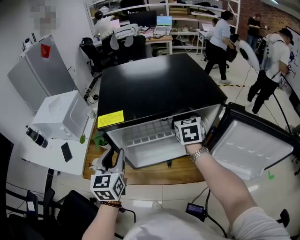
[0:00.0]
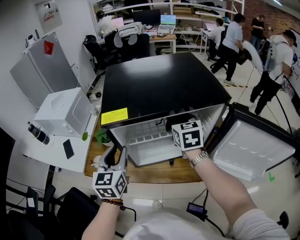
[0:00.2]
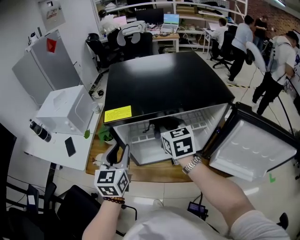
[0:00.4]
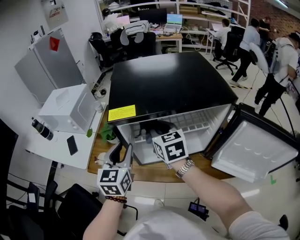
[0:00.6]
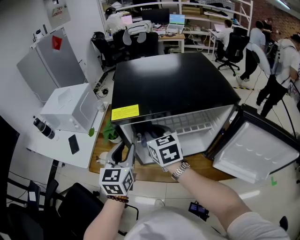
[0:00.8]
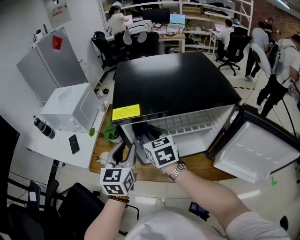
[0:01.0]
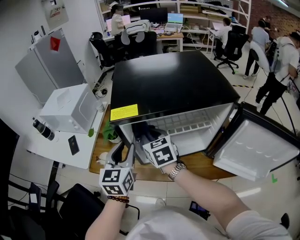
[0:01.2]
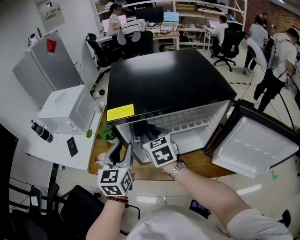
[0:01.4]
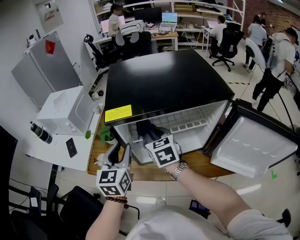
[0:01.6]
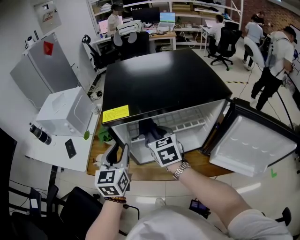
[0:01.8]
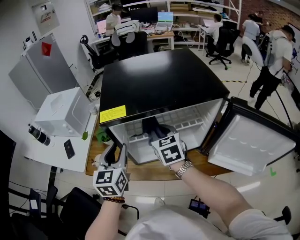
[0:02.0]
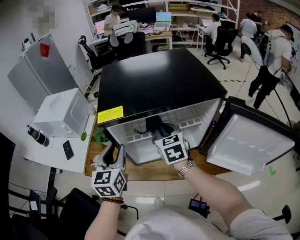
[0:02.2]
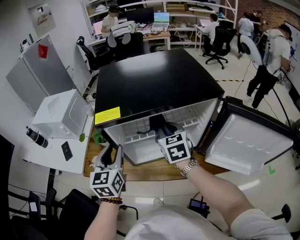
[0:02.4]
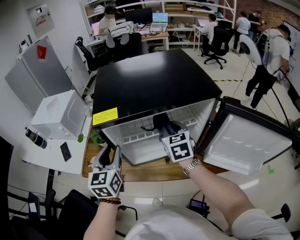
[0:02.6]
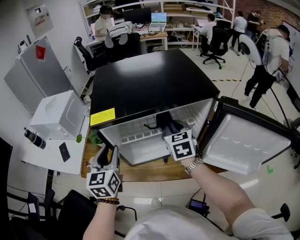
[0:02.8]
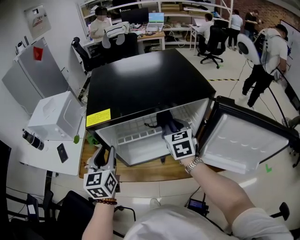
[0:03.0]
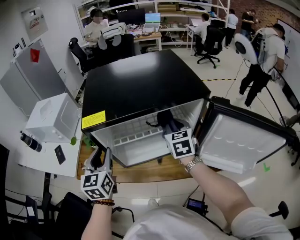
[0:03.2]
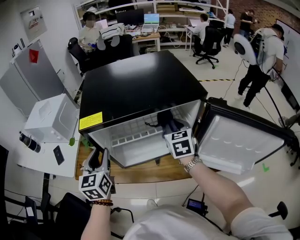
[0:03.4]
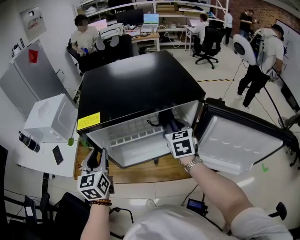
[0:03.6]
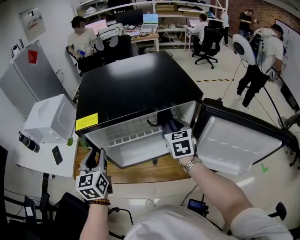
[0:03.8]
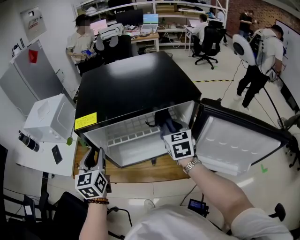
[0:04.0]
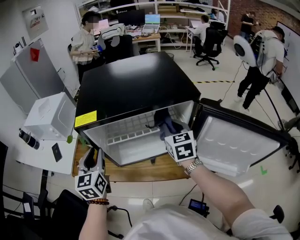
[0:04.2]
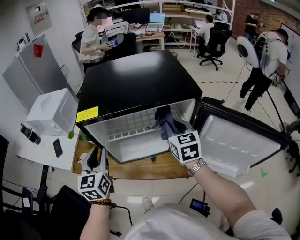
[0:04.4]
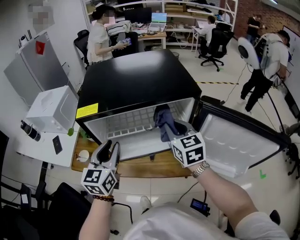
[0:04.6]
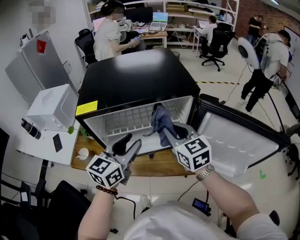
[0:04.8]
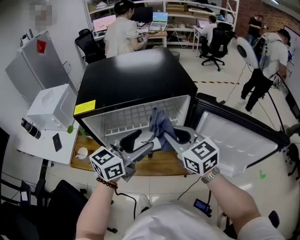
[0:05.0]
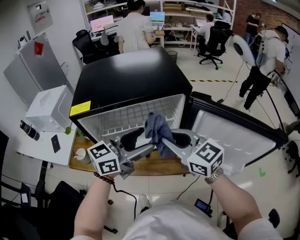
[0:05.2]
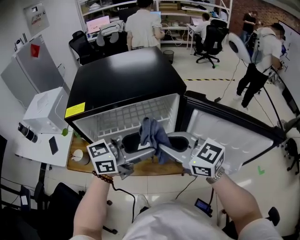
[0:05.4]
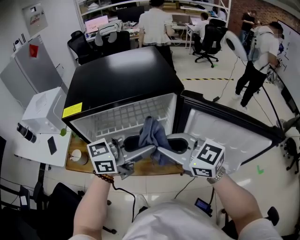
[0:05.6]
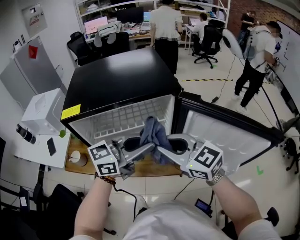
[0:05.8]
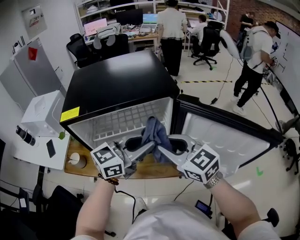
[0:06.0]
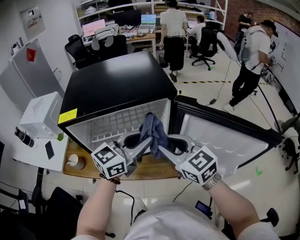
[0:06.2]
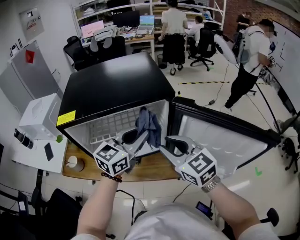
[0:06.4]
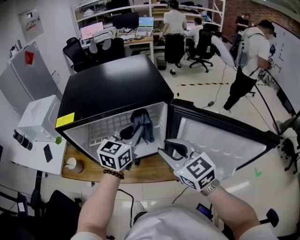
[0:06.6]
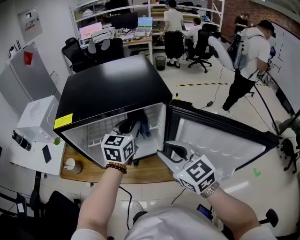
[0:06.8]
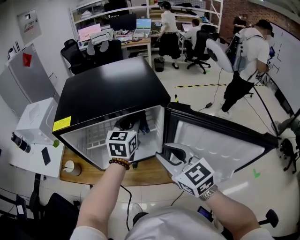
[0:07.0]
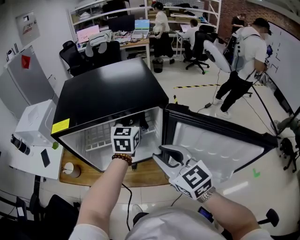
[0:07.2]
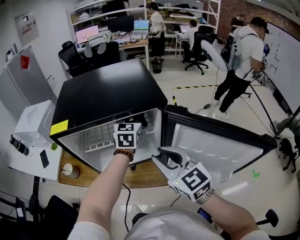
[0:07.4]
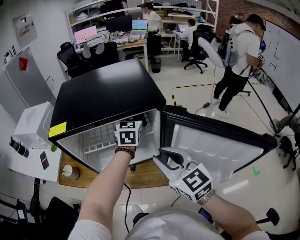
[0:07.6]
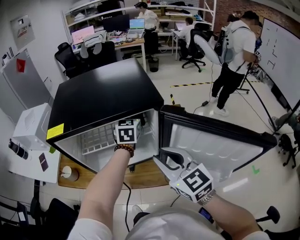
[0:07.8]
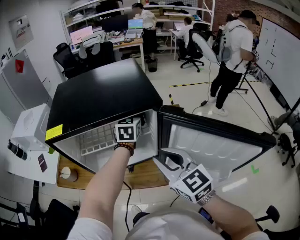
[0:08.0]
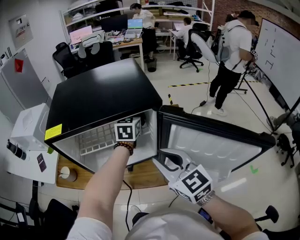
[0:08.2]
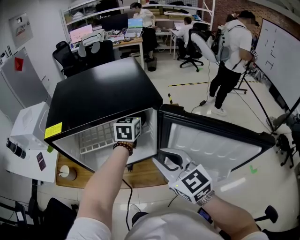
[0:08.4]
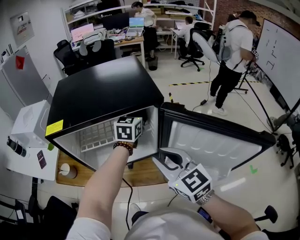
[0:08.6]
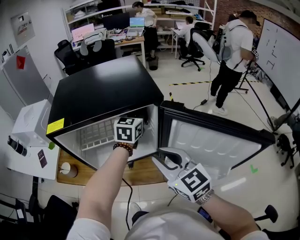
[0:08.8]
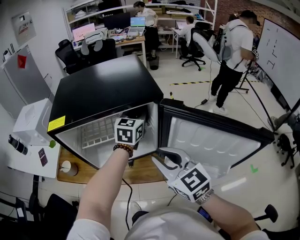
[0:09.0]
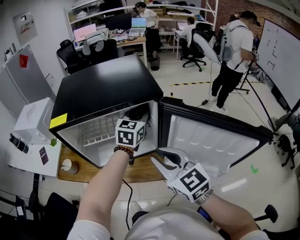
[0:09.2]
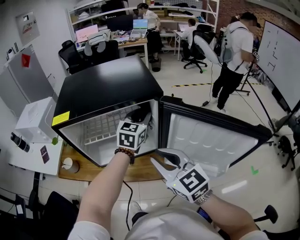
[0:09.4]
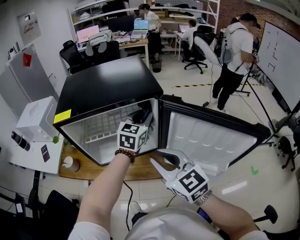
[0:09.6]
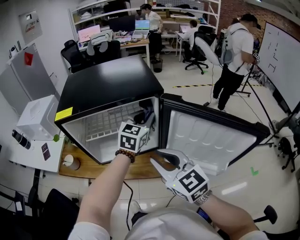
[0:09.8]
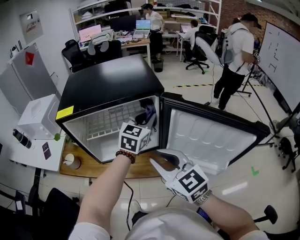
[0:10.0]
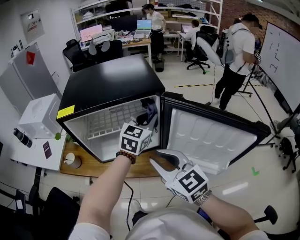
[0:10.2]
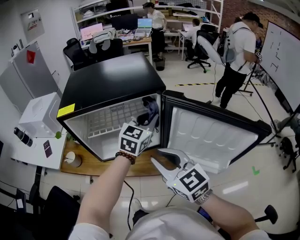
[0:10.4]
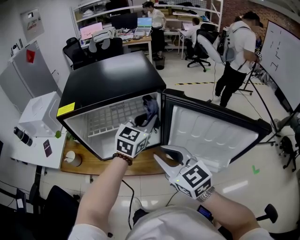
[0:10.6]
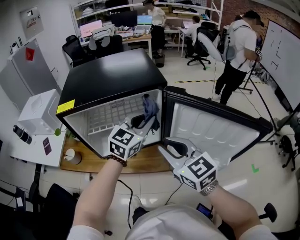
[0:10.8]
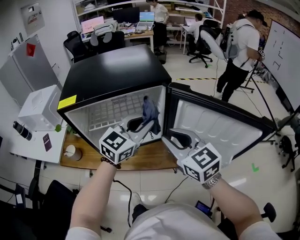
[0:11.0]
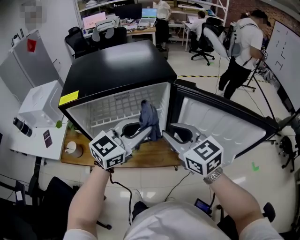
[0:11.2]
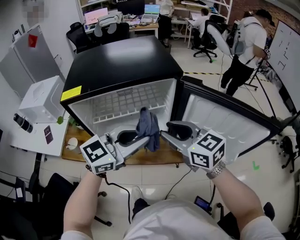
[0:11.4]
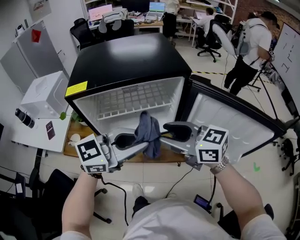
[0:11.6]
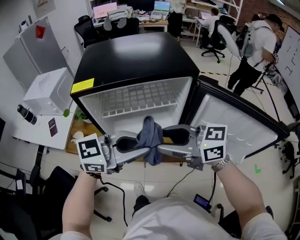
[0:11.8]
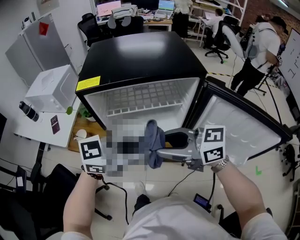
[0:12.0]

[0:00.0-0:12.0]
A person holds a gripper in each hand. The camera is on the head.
0:00.0 to 0:01.6: The right gripper is displaced to the left by some 20 cm, and swivels roughly 20 degrees.
0:01.6 to 0:03.0: The right gripper shifts about 15 cm to the right.
0:03.0 to 0:04.4: The right gripper changes place by about 5 cm.
0:04.4 to 0:06.0: The left gripper moves about 30 cm, rotates about 60 degrees, and opens, then closes once more. The right gripper shifts by roughly 15 cm, and changes its angle by roughly 30 degrees.
0:06.0 to 0:07.6: The left gripper shifts approximately 25 cm forward, and turns by some 50 degrees.
0:07.6 to 0:09.0: The left gripper ends up about 5 cm from where it was.
0:09.0 to 0:10.4: The left gripper moves backward, about 10 cm. The right gripper changes place by approximately 5 cm.
0:10.4 to 0:12.0: The left gripper shifts by some 25 cm, and turns by roughly 40 degrees, while the right gripper ends up roughly 10 cm from where it was, swivels some 50 degrees, and opens its fingers.

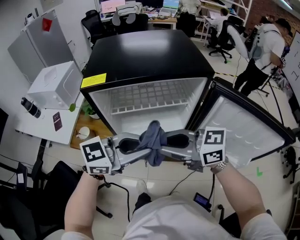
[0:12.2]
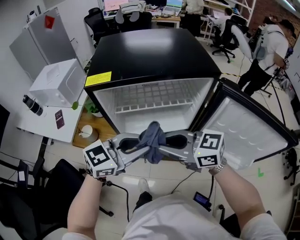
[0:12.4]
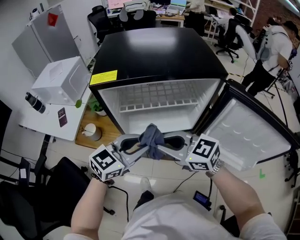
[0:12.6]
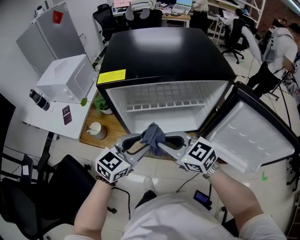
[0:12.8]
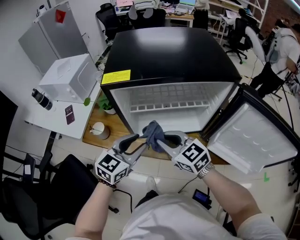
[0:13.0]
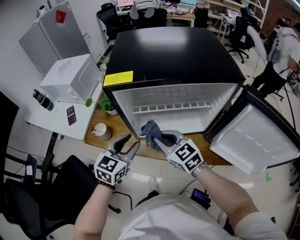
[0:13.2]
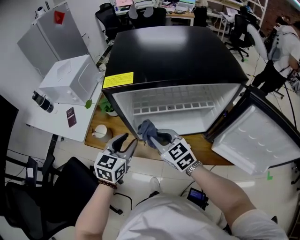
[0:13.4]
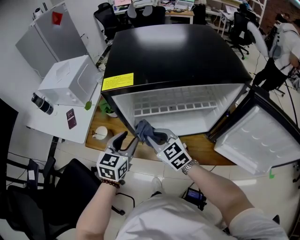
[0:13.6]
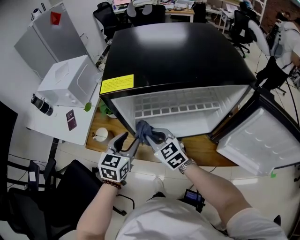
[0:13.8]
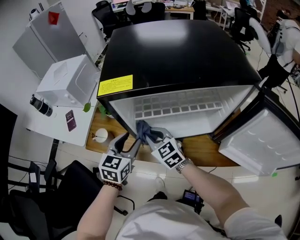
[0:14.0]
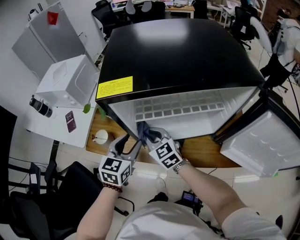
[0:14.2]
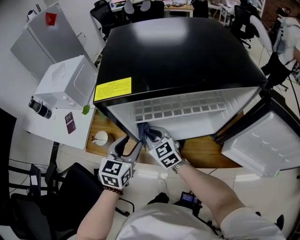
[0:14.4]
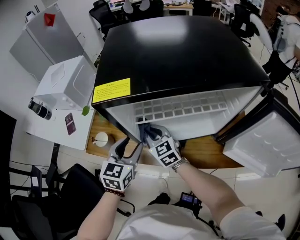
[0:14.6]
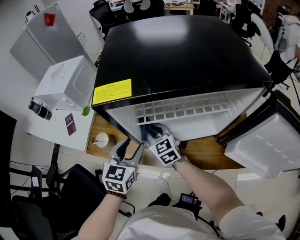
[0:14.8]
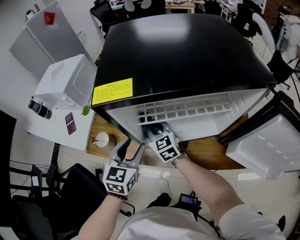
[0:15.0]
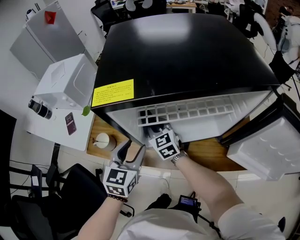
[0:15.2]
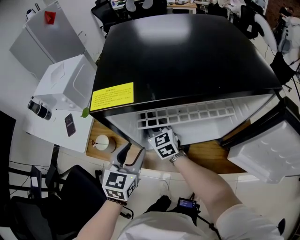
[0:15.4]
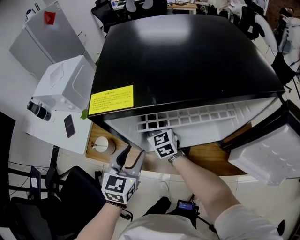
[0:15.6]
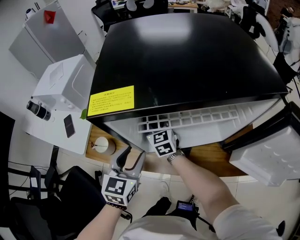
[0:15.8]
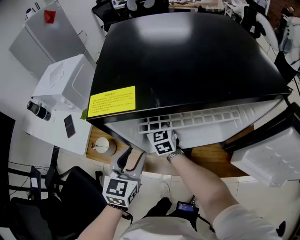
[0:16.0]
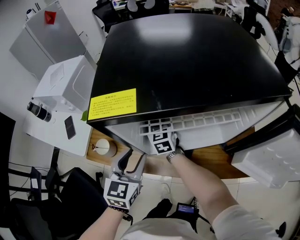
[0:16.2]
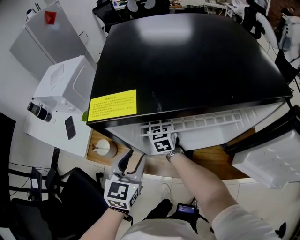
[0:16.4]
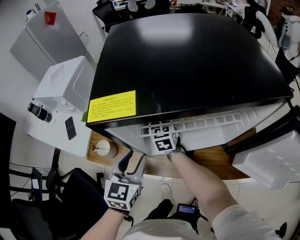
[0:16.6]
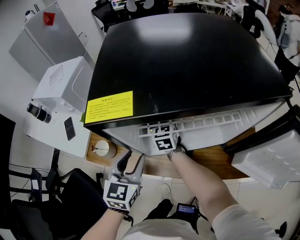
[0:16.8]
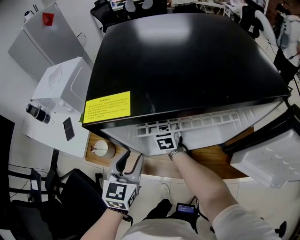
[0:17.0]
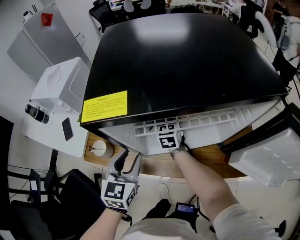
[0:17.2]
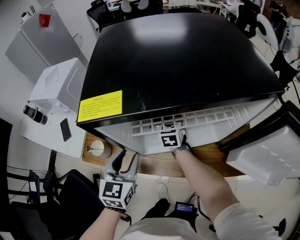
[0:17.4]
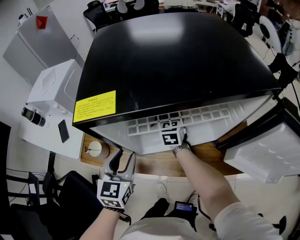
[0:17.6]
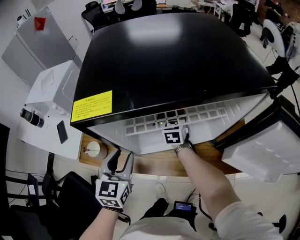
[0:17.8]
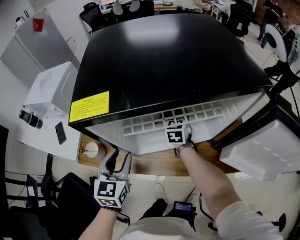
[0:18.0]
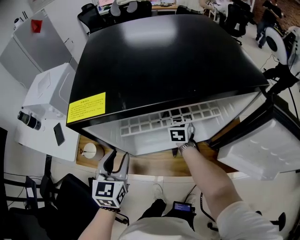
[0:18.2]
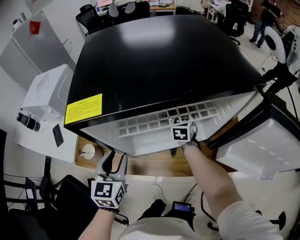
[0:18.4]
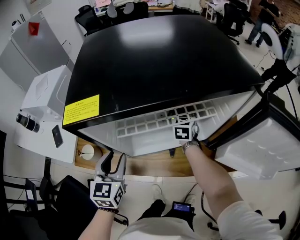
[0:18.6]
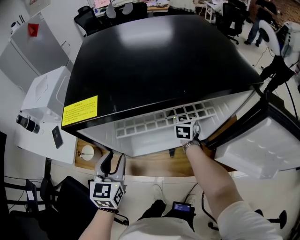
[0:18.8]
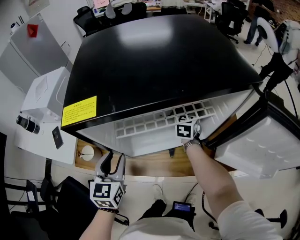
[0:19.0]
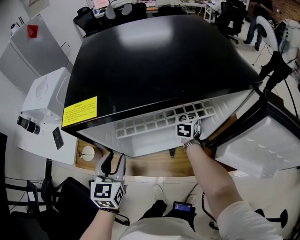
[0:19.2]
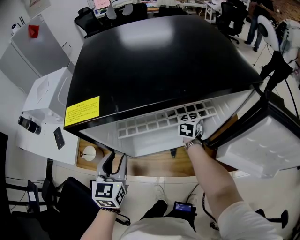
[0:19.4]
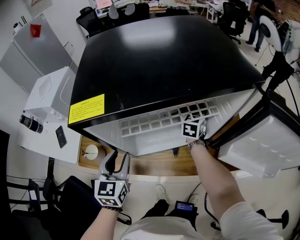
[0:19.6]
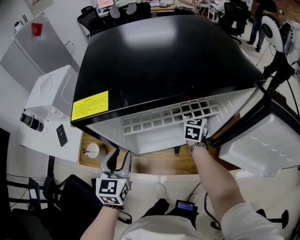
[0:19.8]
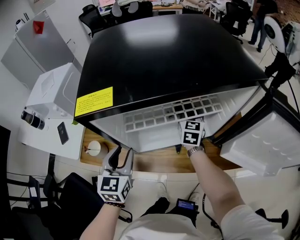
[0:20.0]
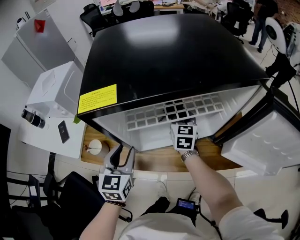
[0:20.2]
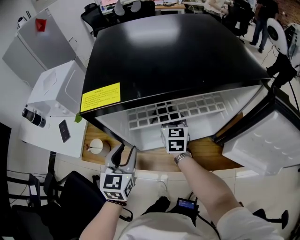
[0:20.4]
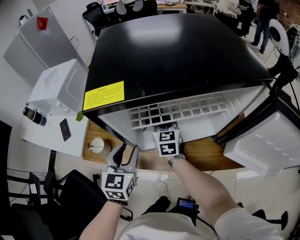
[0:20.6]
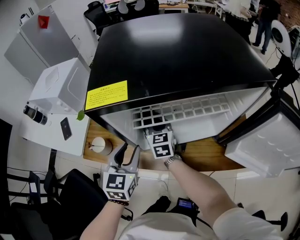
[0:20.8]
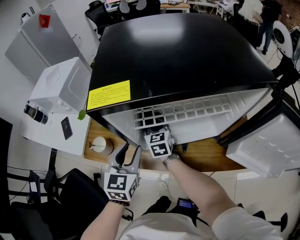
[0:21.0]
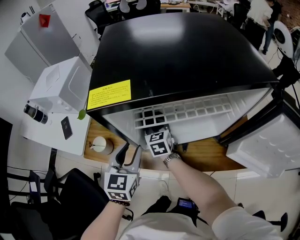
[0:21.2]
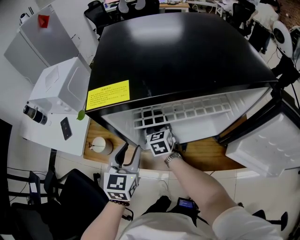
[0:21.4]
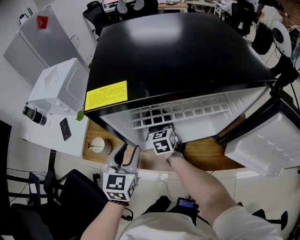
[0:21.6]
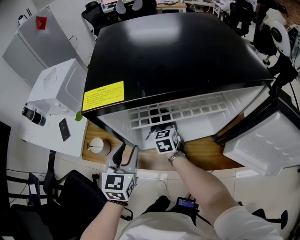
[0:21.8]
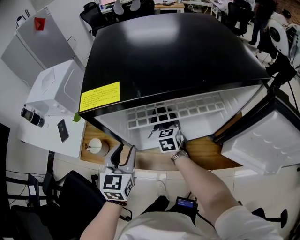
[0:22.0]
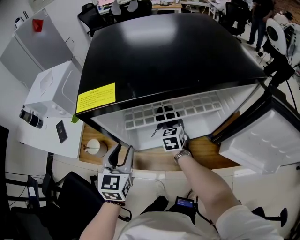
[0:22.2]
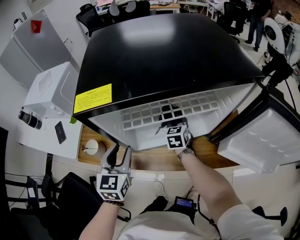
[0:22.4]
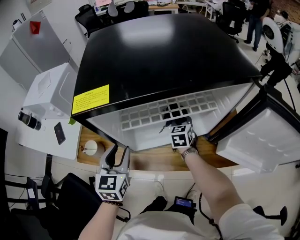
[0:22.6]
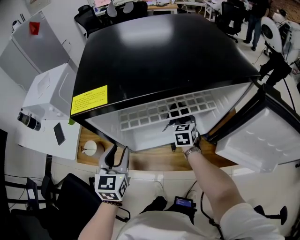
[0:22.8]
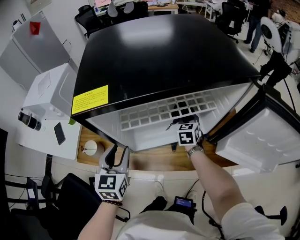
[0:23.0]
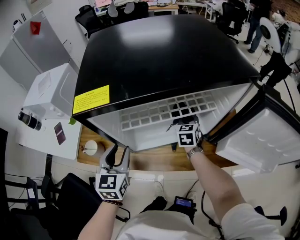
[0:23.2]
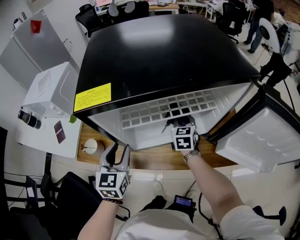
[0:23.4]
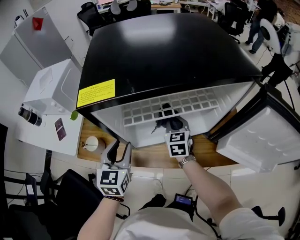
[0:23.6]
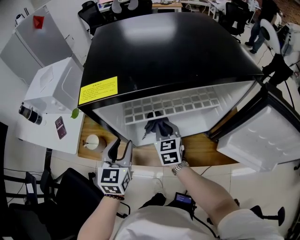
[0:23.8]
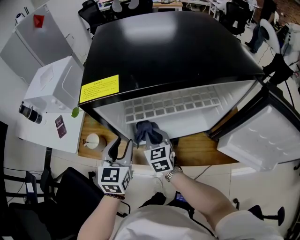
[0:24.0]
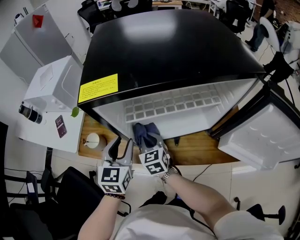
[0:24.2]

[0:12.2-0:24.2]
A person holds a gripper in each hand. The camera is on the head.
0:12.2 to 0:13.8: The left gripper changes place by approximately 25 cm, rotates about 60 degrees, and opens its fingers. The right gripper ends up approximately 30 cm from where it was, and swivels about 40 degrees.
0:13.8 to 0:15.2: The right gripper travels forward by approximately 10 cm.
0:15.2 to 0:16.6: The right gripper is displaced forward by some 10 cm.
0:16.6 to 0:18.2: The right gripper heads to the right, covering approximately 20 cm.
0:18.2 to 0:19.8: The right gripper shifts some 10 cm to the right.
0:19.8 to 0:21.2: The right gripper heads to the left, covering some 25 cm, and rotates approximately 30 degrees.
0:21.2 to 0:22.6: The right gripper moves to the right, approximately 20 cm.
0:22.6 to 0:24.2: The right gripper heads to the left and backward, covering roughly 20 cm, and turns by some 20 degrees.
